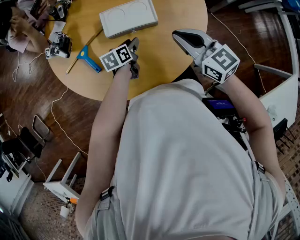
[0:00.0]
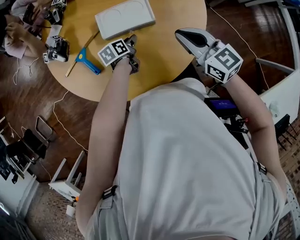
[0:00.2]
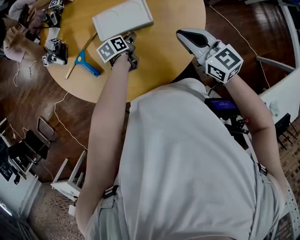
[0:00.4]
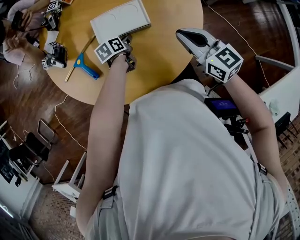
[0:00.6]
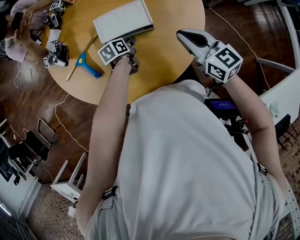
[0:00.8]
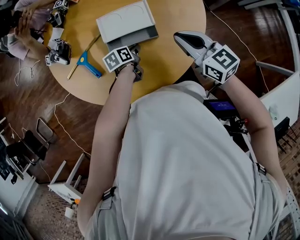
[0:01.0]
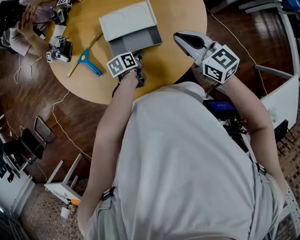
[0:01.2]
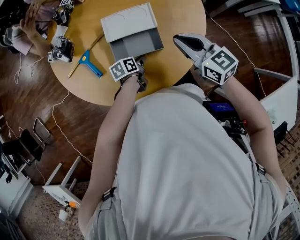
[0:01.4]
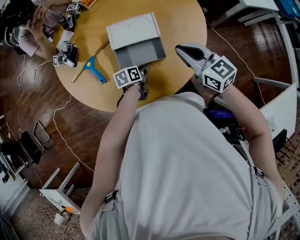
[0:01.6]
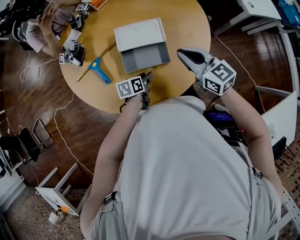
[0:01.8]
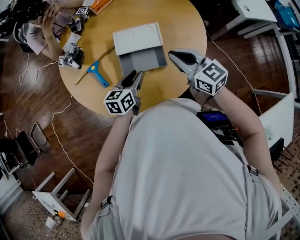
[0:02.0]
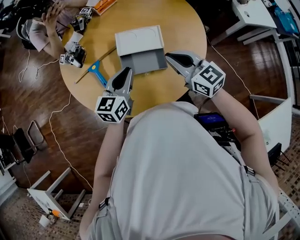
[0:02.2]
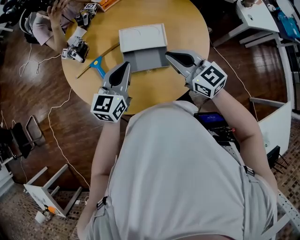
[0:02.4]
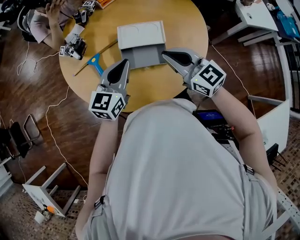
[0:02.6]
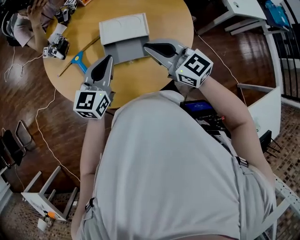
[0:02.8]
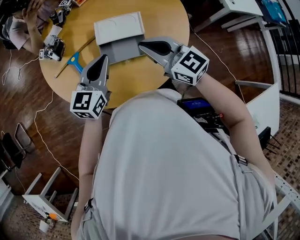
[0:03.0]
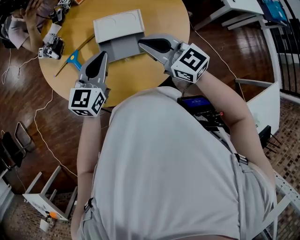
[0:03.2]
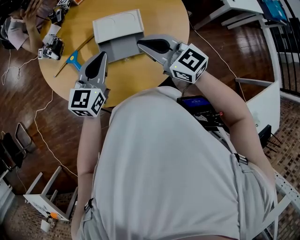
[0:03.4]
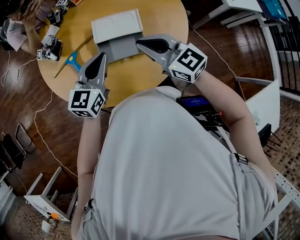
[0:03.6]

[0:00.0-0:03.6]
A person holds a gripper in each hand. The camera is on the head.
0:00.0 to 0:01.8: The left gripper moves backward, some 10 cm, and closes, then opens again.
0:01.8 to 0:03.6: The left gripper shifts roughly 25 cm upward, tips its fingers upward by approximately 30 degrees, and closes, while the right gripper heads to the left, covering some 5 cm.

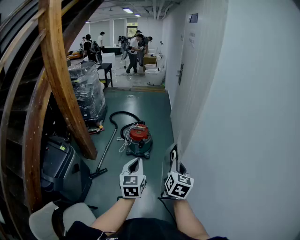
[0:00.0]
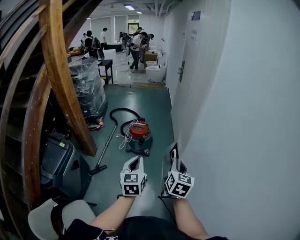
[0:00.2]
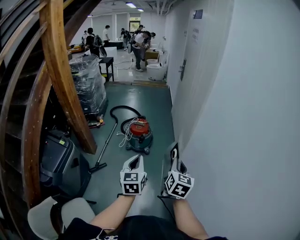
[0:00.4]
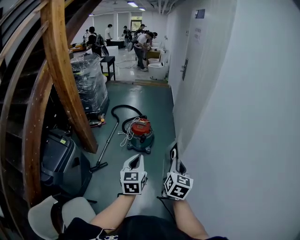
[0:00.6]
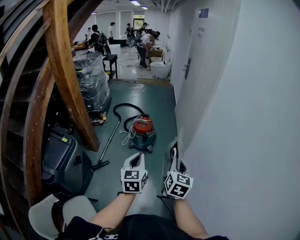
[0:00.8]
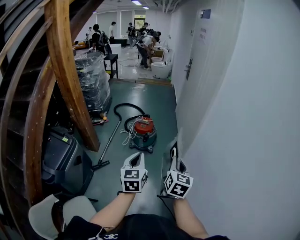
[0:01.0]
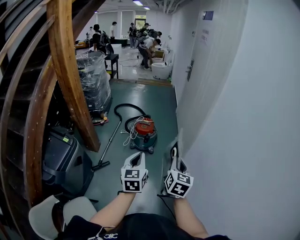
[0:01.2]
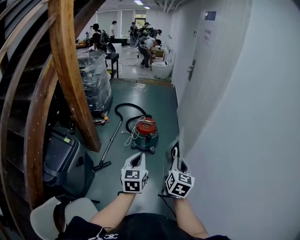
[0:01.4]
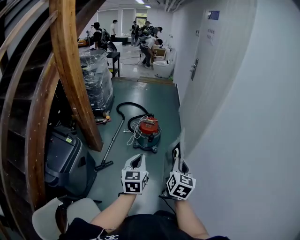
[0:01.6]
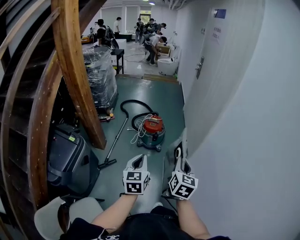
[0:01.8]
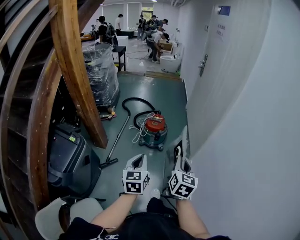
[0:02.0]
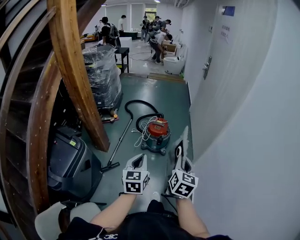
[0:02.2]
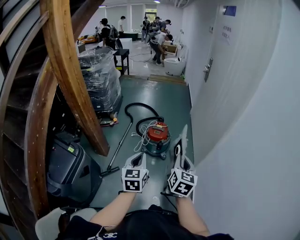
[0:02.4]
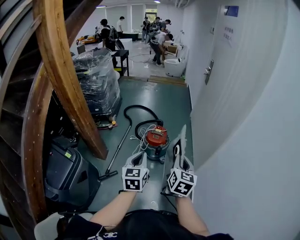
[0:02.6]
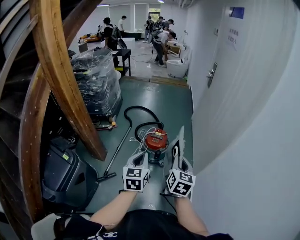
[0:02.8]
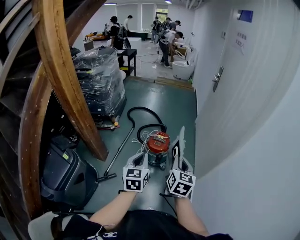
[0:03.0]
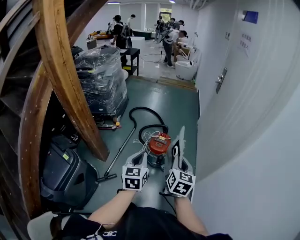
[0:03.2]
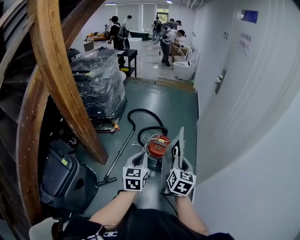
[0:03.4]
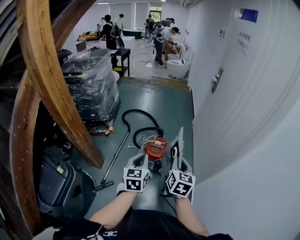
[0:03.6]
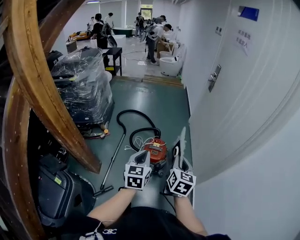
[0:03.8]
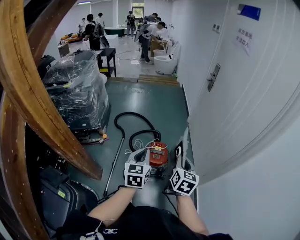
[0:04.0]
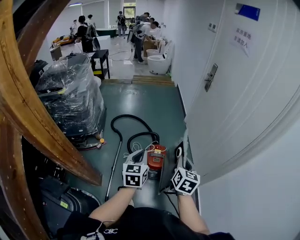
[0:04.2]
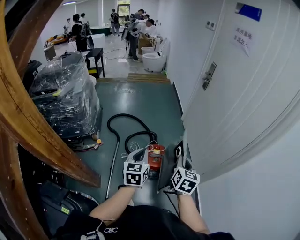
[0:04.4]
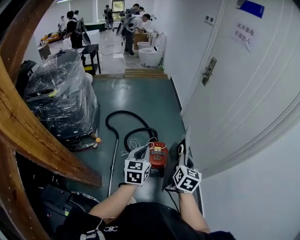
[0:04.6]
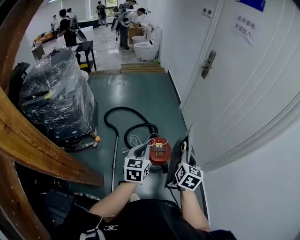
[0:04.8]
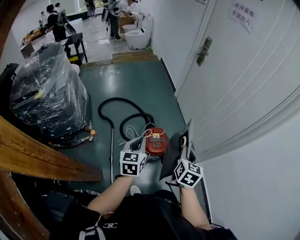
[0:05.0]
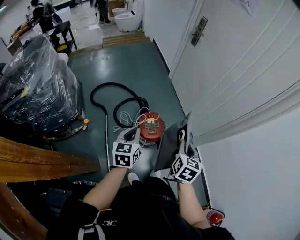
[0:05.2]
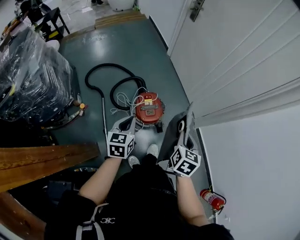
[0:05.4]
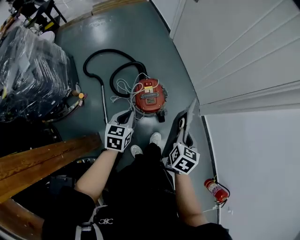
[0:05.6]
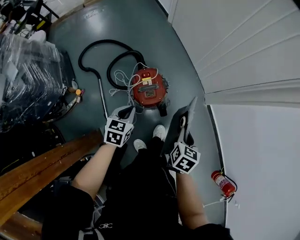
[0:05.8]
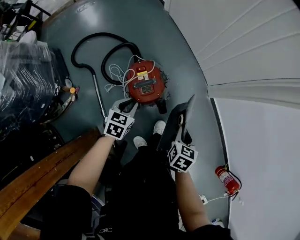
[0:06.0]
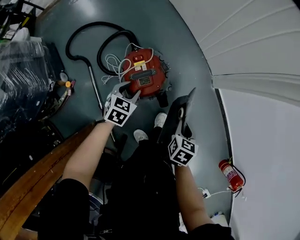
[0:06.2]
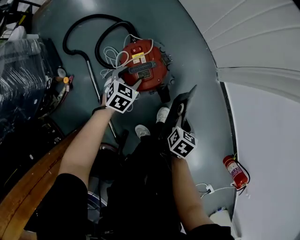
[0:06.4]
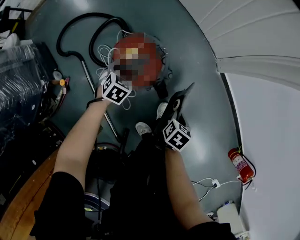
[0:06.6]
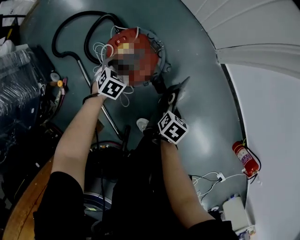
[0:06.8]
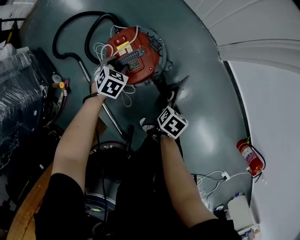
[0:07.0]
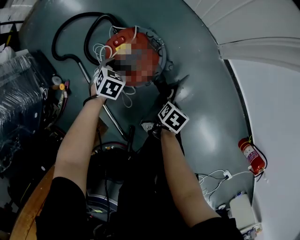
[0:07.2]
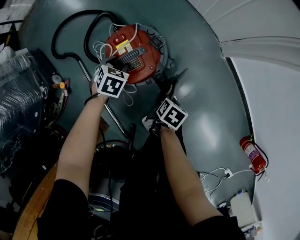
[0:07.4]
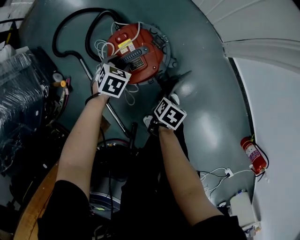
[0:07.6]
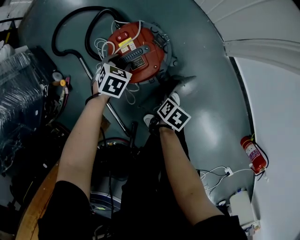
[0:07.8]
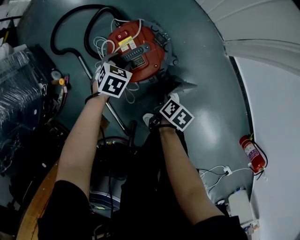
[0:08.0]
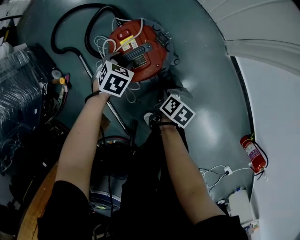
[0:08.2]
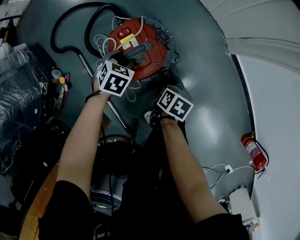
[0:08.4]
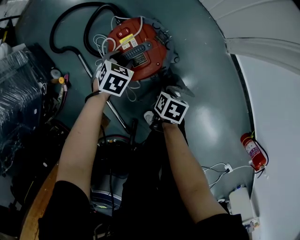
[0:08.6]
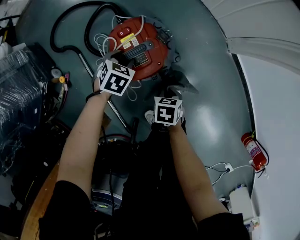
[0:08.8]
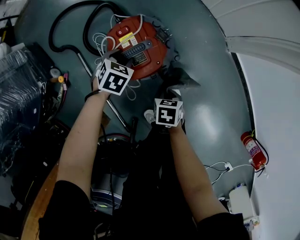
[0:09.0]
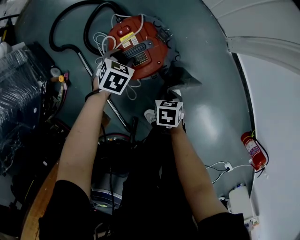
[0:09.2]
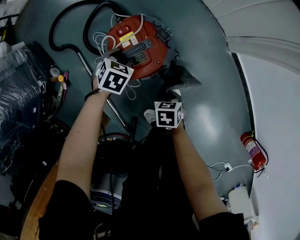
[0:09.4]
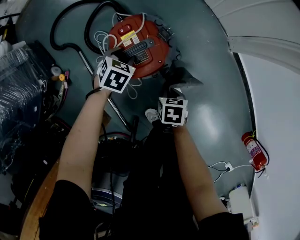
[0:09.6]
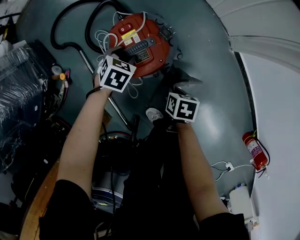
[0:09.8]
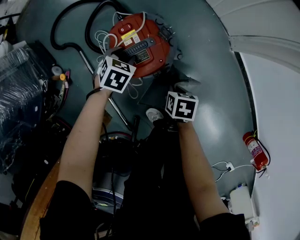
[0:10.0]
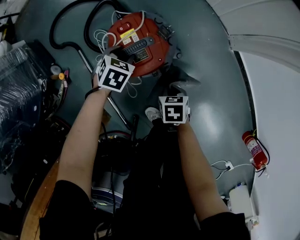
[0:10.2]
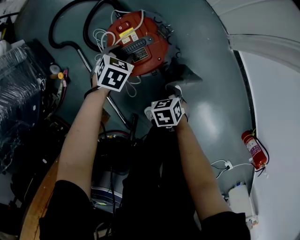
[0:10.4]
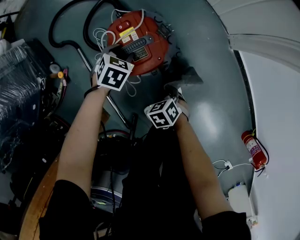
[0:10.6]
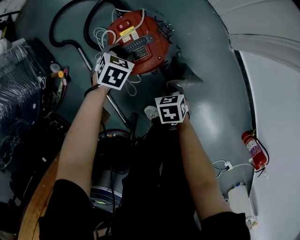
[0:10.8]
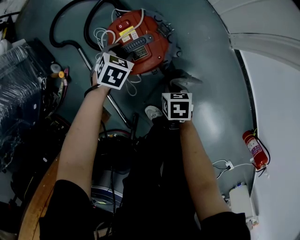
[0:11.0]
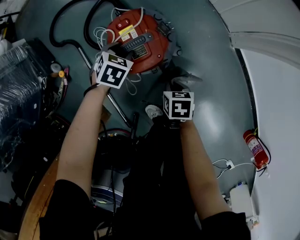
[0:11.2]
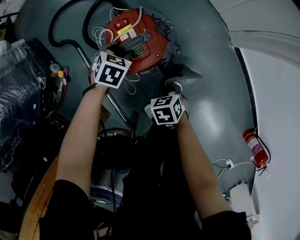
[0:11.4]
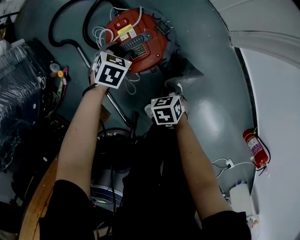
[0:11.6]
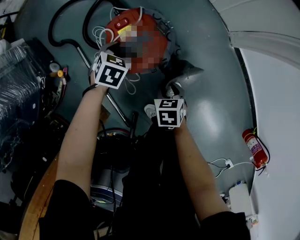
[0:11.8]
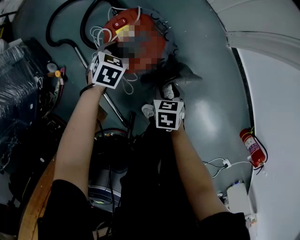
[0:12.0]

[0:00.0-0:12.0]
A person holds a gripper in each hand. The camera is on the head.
0:00.0 to 0:01.6: Both grippers travel together to the left, roughly 10 cm.
0:01.6 to 0:03.0: Both grippers move forward, approximately 30 cm.
0:03.0 to 0:04.4: Both grippers move forward and to the left, about 25 cm.
0:04.4 to 0:06.0: Both grippers move downward, approximately 35 cm. The left gripper tilts its fingers approximately 30 degrees downward; the right gripper points its fingers about 30 degrees further downward.
0:06.0 to 0:07.6: The right gripper is displaced downward by some 25 cm, and turns by approximately 40 degrees. The left gripper heads downward and forward, covering approximately 20 cm, swivels about 30 degrees, and opens its fingers.
0:07.6 to 0:09.0: The right gripper turns by roughly 30 degrees.
0:09.0 to 0:10.4: The right gripper turns by some 20 degrees.
0:10.4 to 0:12.0: The right gripper opens.

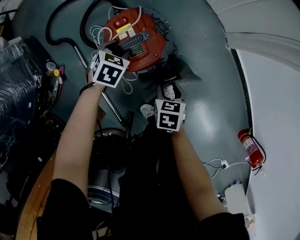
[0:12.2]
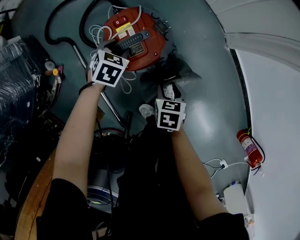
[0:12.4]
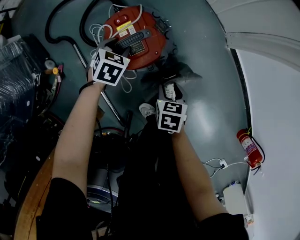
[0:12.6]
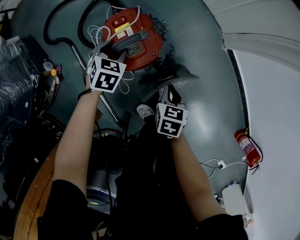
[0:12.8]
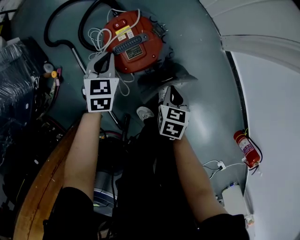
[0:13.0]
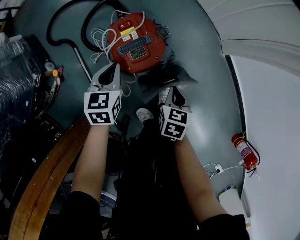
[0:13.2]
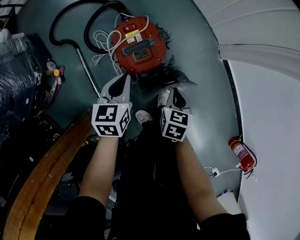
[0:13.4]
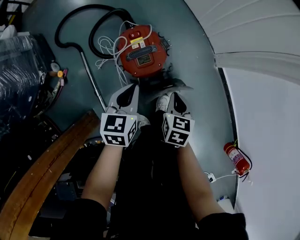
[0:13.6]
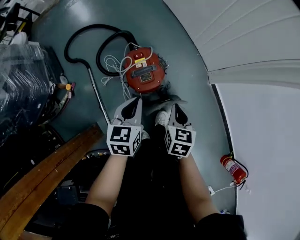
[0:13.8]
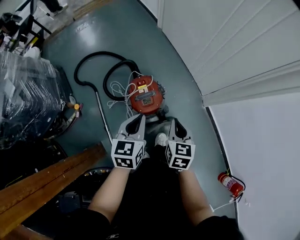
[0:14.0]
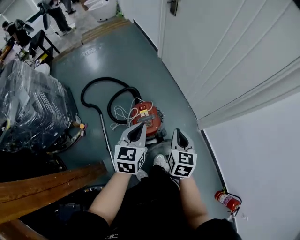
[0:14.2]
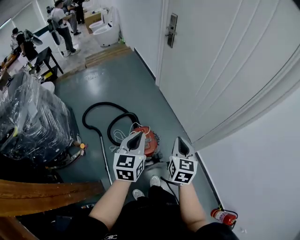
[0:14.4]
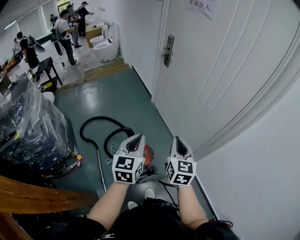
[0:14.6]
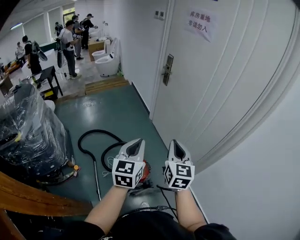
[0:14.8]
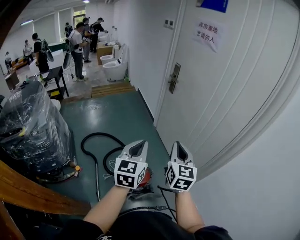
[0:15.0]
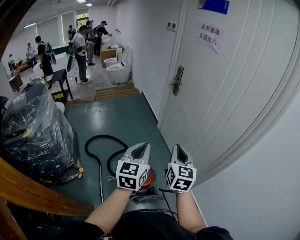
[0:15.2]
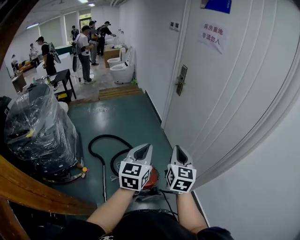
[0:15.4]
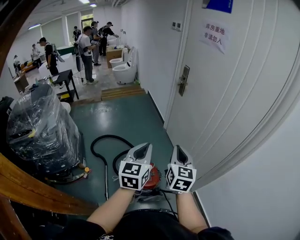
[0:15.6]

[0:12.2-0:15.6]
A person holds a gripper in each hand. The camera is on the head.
0:12.2 to 0:13.8: The right gripper shifts approximately 20 cm upward, changes its angle by roughly 20 degrees, and closes its fingers. Meanwhile the left gripper moves upward and backward, about 30 cm, tilts its fingers roughly 30 degrees upward, and closes its fingers.
0:13.8 to 0:15.6: Both grippers travel together upward, approximately 40 cm. The right gripper angles its fingers upward, by approximately 40 degrees; the left gripper swivels some 30 degrees.

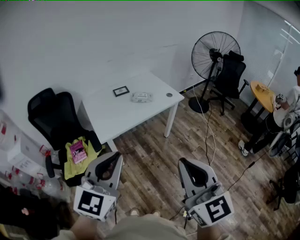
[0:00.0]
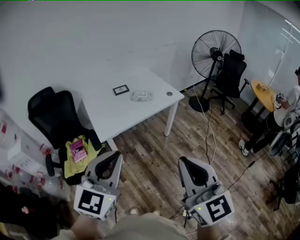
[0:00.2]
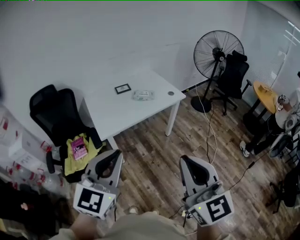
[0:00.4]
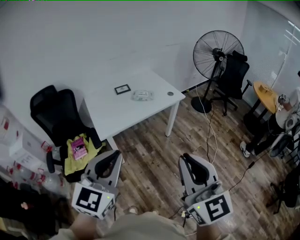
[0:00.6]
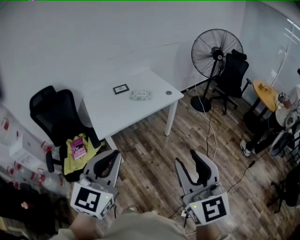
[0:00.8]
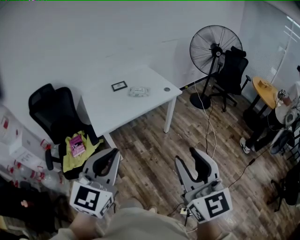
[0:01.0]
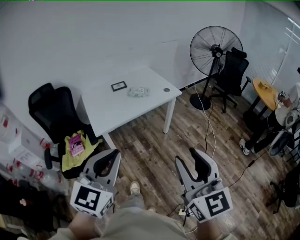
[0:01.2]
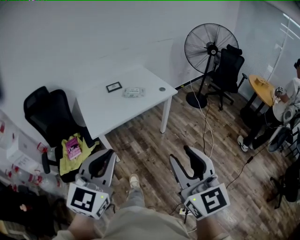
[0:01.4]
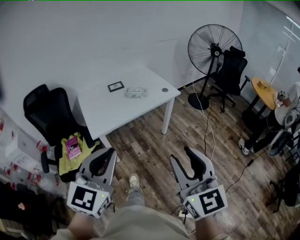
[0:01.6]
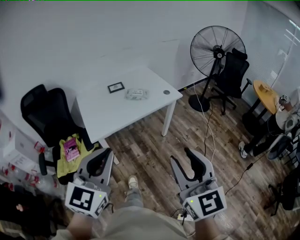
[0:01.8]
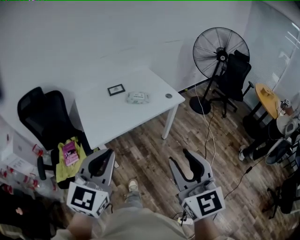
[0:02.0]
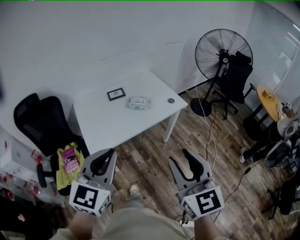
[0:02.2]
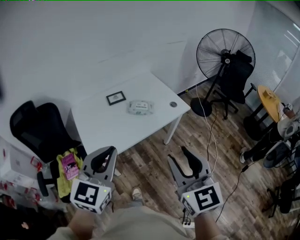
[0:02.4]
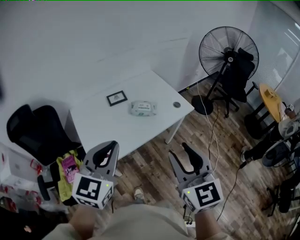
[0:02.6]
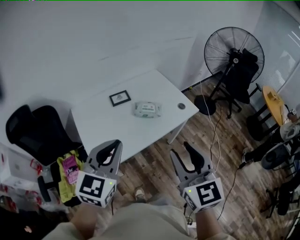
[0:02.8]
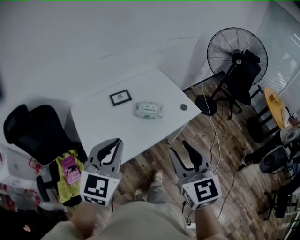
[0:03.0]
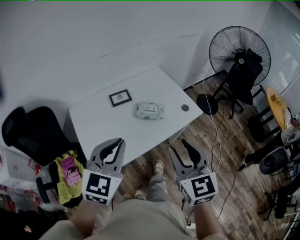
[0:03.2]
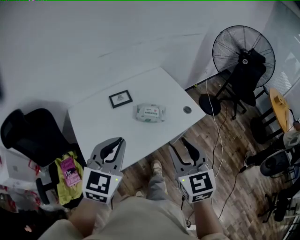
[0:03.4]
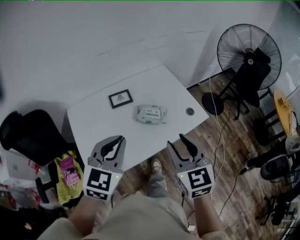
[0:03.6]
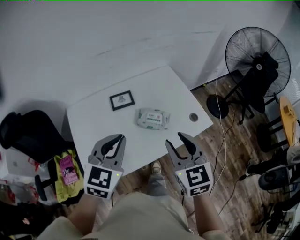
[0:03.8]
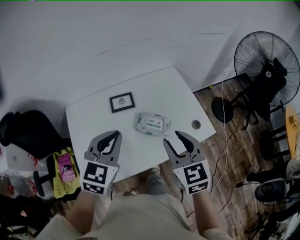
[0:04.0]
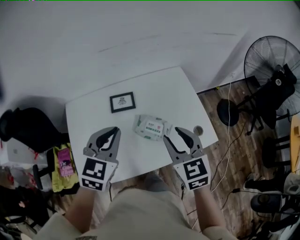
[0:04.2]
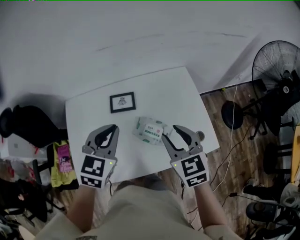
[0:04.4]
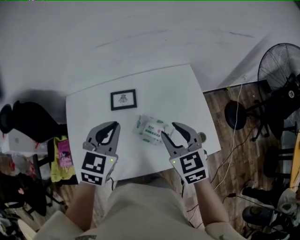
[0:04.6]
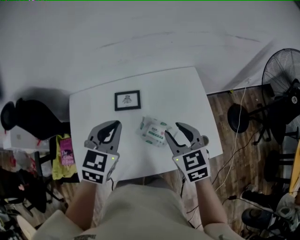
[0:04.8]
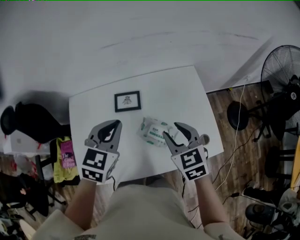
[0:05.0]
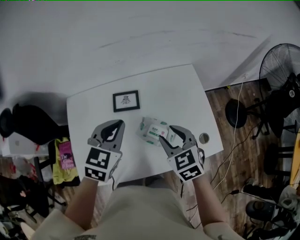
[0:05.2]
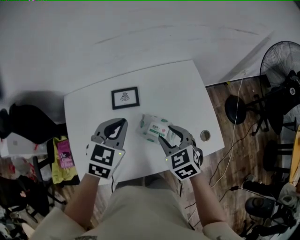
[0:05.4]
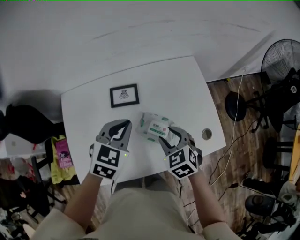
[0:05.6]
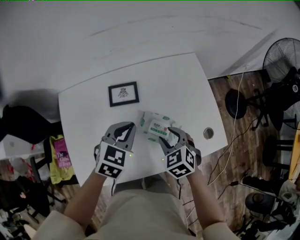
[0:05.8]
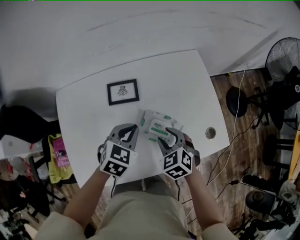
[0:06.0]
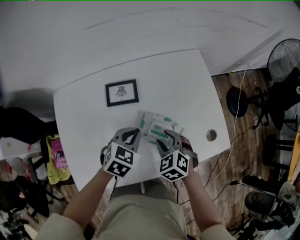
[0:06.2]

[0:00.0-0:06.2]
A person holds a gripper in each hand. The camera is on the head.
0:00.0 to 0:01.6: Both grippers move to the right, roughly 5 cm. The right gripper opens up.
0:01.6 to 0:03.2: Both grippers are carried forward, about 40 cm.
0:03.2 to 0:04.6: The right gripper heads forward and downward, covering some 35 cm, and changes its angle by approximately 30 degrees. Meanwhile the left gripper goes about 30 cm forward, and swivels about 30 degrees.
0:04.6 to 0:06.2: Both grippers move downward, roughly 20 cm. The left gripper turns by roughly 20 degrees; the right gripper rotates some 30 degrees.
